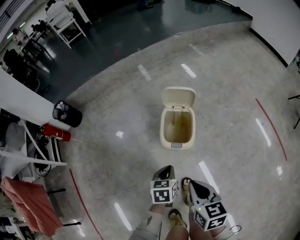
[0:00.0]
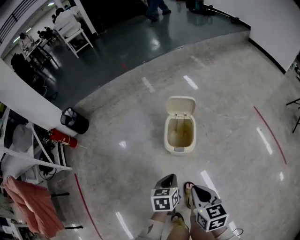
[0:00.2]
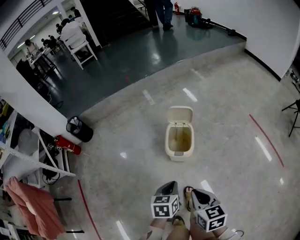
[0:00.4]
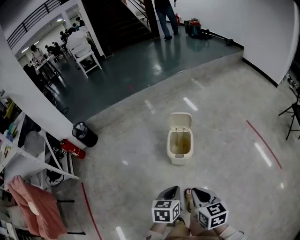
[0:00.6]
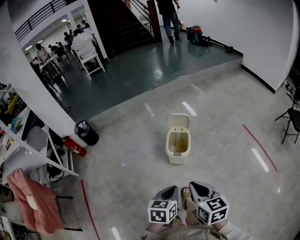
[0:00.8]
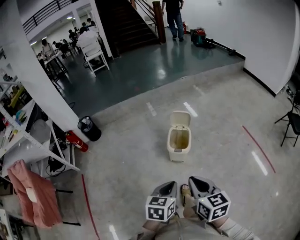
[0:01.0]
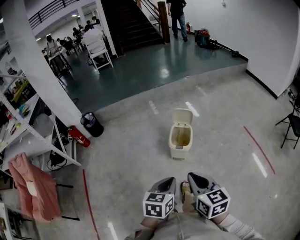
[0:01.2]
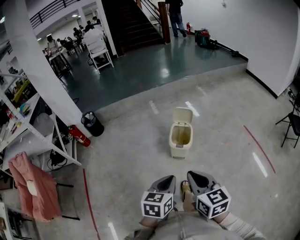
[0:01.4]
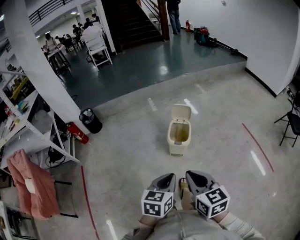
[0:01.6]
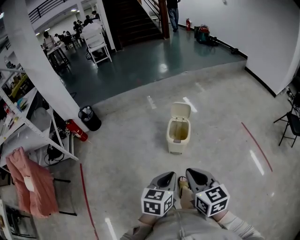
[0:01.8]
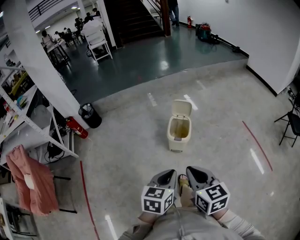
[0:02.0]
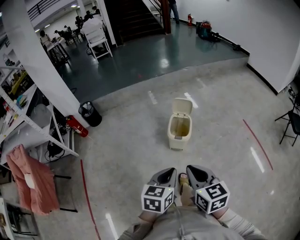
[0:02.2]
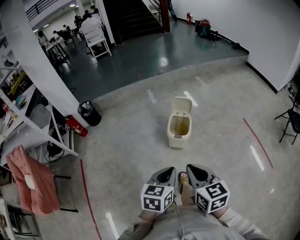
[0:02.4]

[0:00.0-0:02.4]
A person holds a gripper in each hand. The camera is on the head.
0:00.0 to 0:01.2: Both grippers move upward and backward, about 40 cm. The right gripper rotates about 20 degrees.
0:01.2 to 0:02.4: The grippers move only a little.

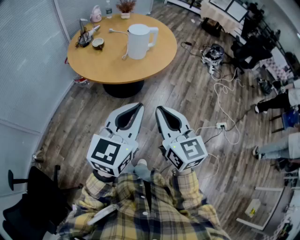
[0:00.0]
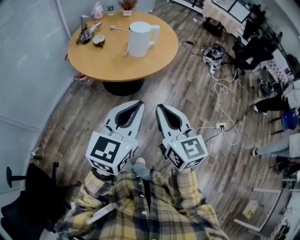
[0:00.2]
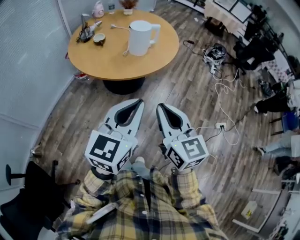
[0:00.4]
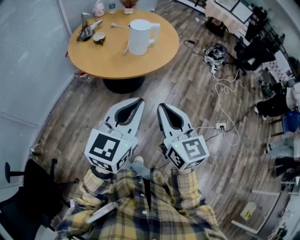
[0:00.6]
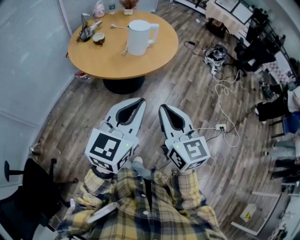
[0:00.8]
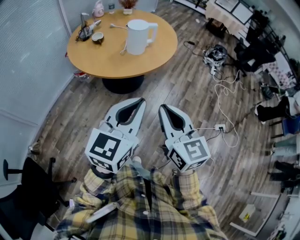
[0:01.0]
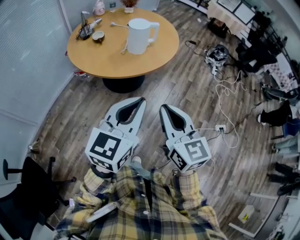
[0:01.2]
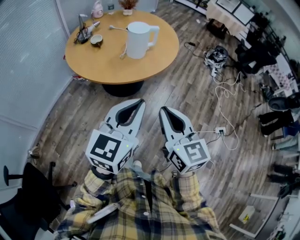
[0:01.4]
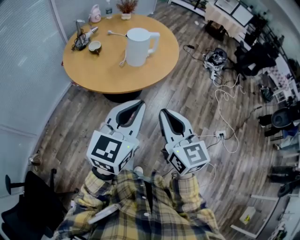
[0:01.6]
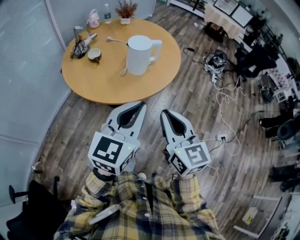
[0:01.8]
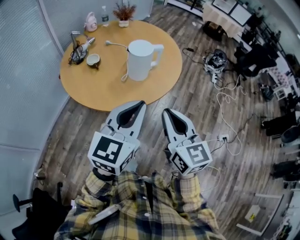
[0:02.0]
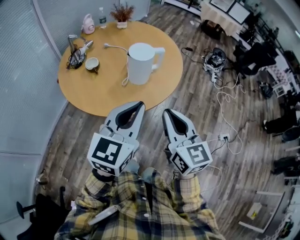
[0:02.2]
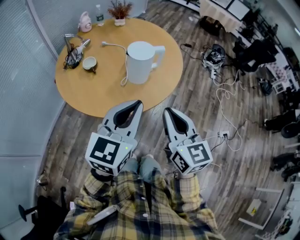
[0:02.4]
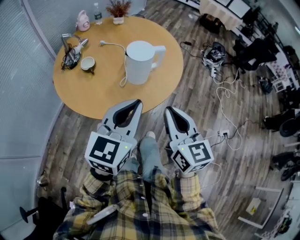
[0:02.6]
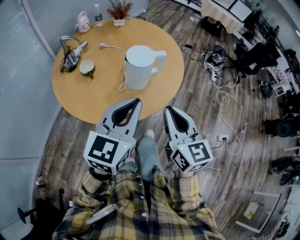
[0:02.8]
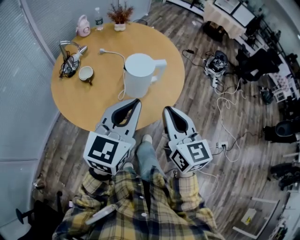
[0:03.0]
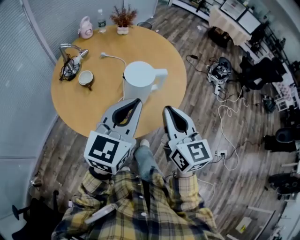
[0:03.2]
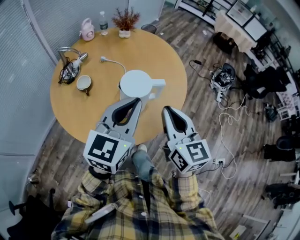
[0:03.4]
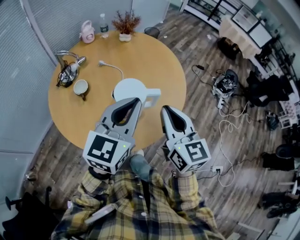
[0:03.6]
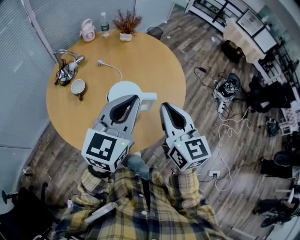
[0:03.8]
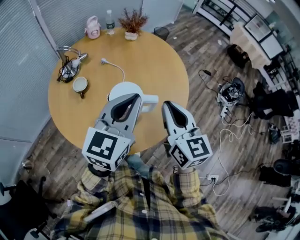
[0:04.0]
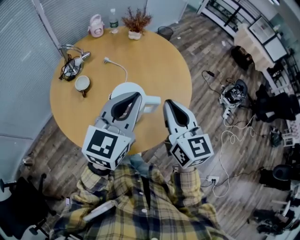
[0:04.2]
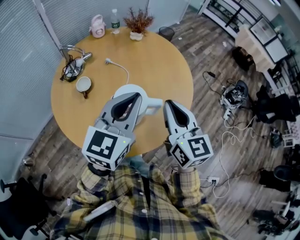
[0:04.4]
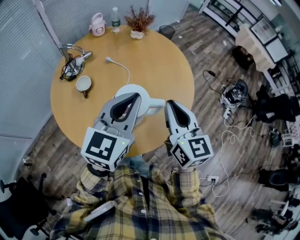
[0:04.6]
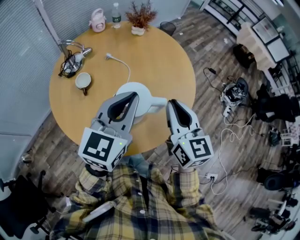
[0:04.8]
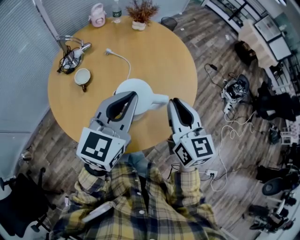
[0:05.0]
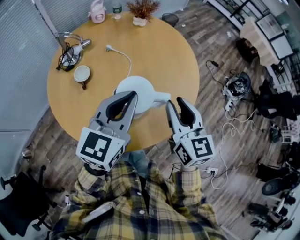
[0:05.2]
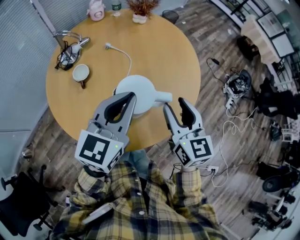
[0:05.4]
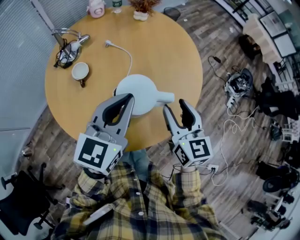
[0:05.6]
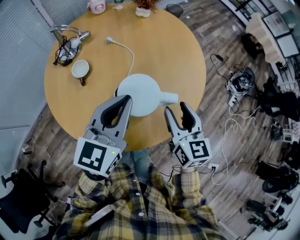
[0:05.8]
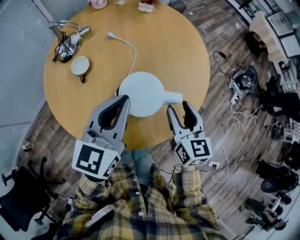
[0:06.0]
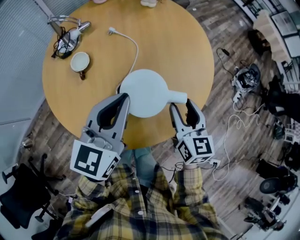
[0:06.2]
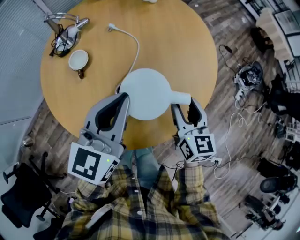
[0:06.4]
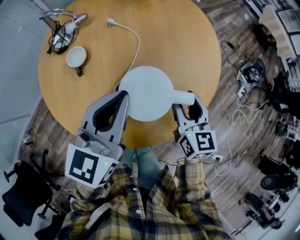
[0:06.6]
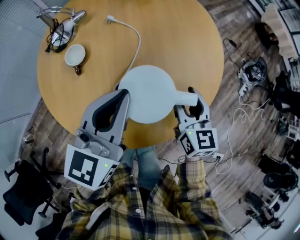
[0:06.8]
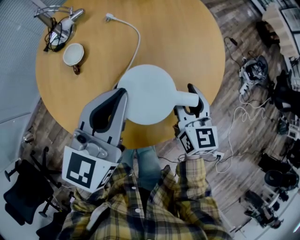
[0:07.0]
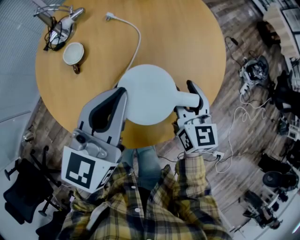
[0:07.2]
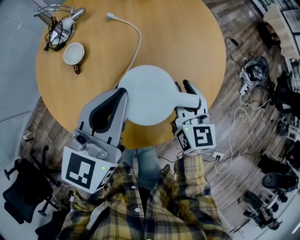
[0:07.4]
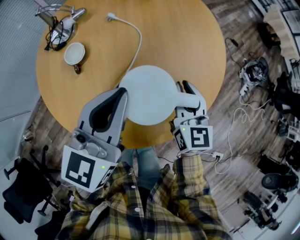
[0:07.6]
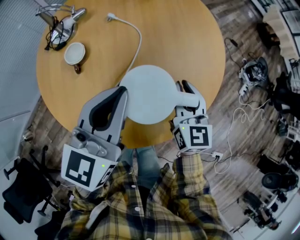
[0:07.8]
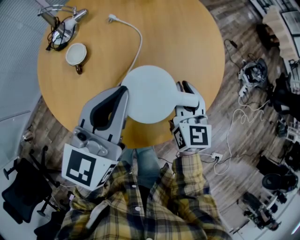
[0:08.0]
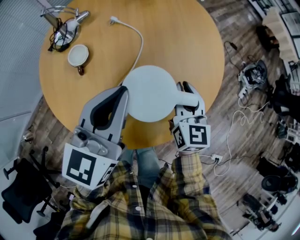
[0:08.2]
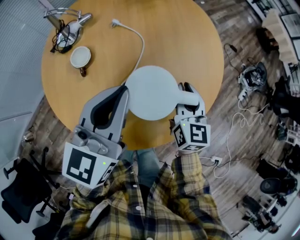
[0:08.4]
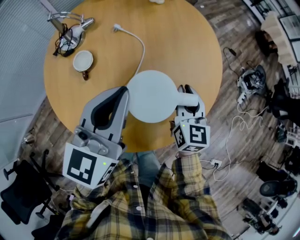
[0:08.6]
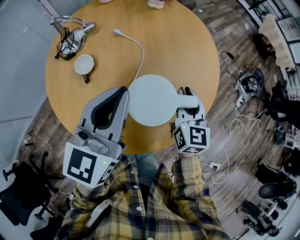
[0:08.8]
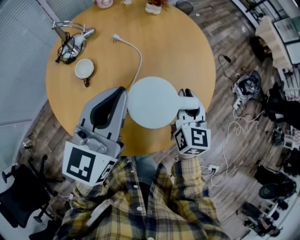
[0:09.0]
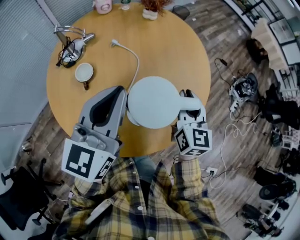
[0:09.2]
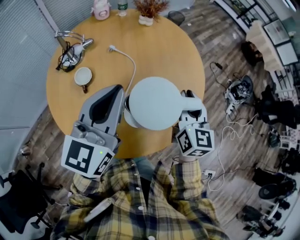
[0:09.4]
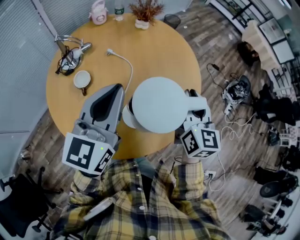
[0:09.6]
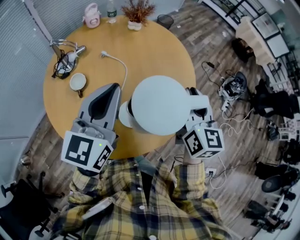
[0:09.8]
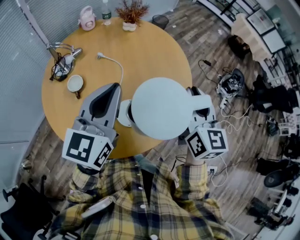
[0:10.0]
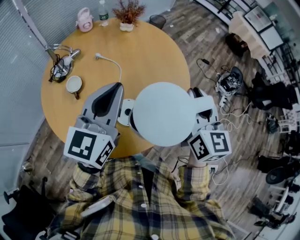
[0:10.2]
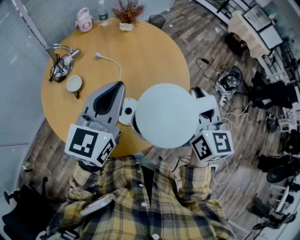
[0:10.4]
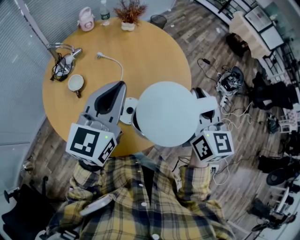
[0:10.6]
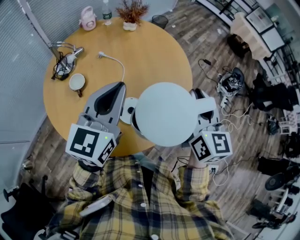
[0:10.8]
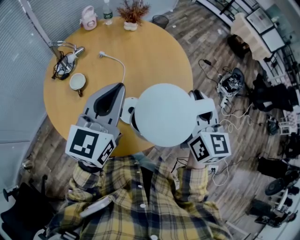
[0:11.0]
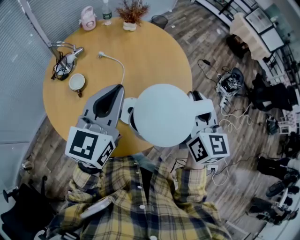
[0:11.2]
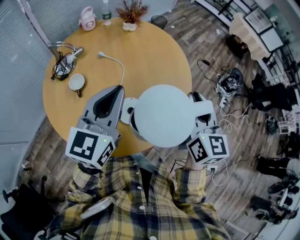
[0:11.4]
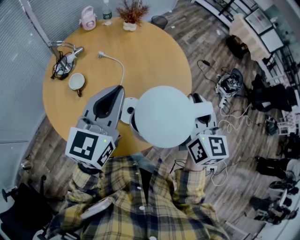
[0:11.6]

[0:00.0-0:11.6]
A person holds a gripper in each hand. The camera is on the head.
0:00.0 to 0:01.4: The right gripper changes place by roughly 5 cm, while the left gripper ends up about 5 cm from where it was.
0:01.4 to 0:02.8: Both grippers move forward, some 25 cm.
0:02.8 to 0:04.4: Both grippers travel together forward, about 25 cm.
0:04.4 to 0:05.8: The right gripper travels downward by approximately 10 cm, and opens. The left gripper heads downward and to the left, covering approximately 10 cm.
0:05.8 to 0:07.2: The right gripper travels downward and forward by approximately 10 cm.
0:07.2 to 0:08.8: The left gripper is displaced upward by about 5 cm; the right gripper closes up.
0:08.8 to 0:10.2: The right gripper is displaced upward and to the right by some 20 cm. Meanwhile the left gripper shifts by roughly 5 cm.
0:10.2 to 0:11.6: The grippers stay close to where they were, moving slightly.

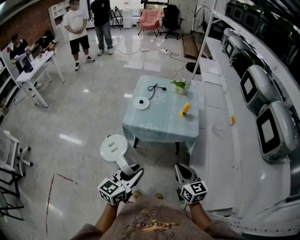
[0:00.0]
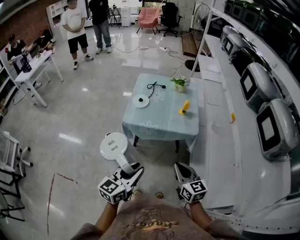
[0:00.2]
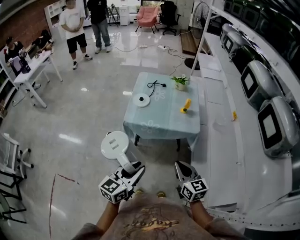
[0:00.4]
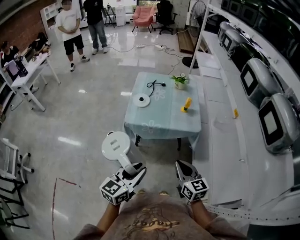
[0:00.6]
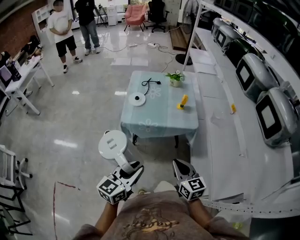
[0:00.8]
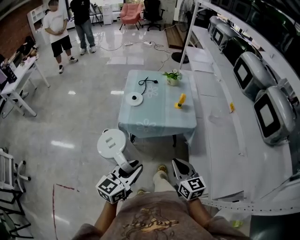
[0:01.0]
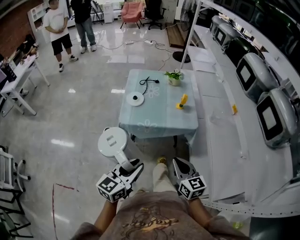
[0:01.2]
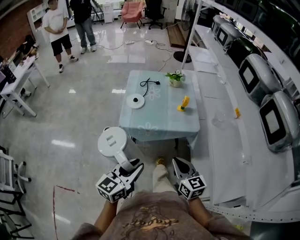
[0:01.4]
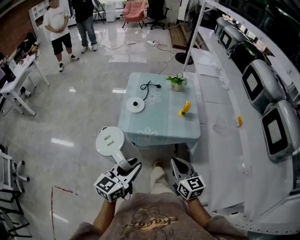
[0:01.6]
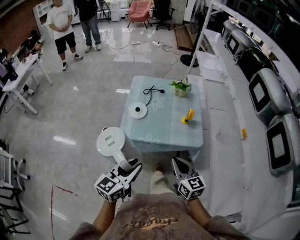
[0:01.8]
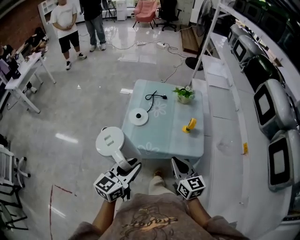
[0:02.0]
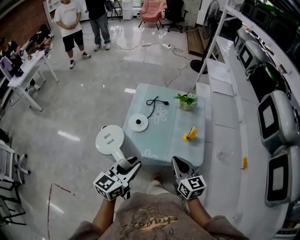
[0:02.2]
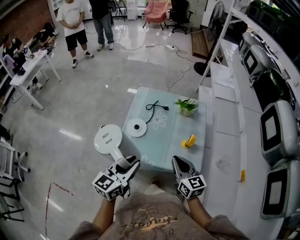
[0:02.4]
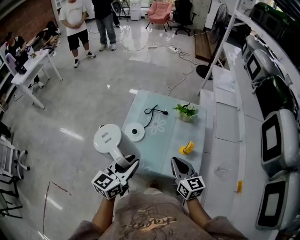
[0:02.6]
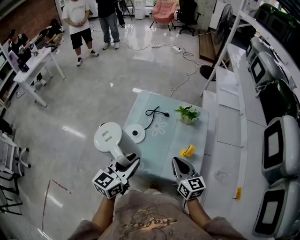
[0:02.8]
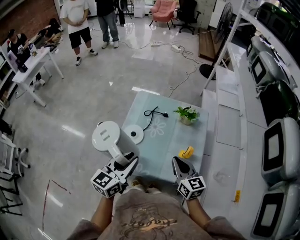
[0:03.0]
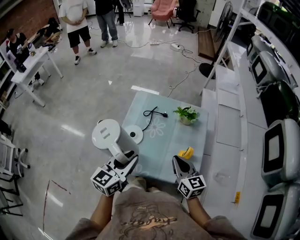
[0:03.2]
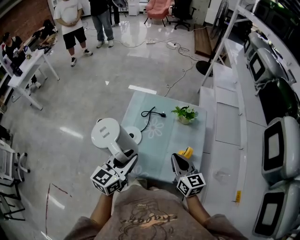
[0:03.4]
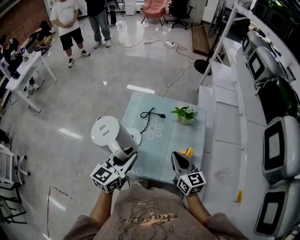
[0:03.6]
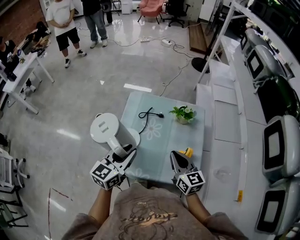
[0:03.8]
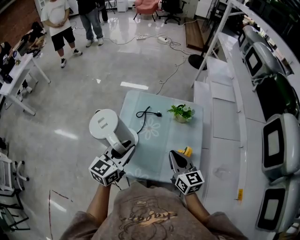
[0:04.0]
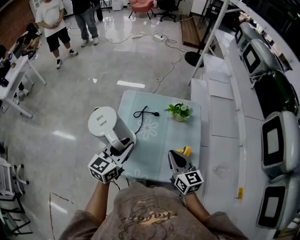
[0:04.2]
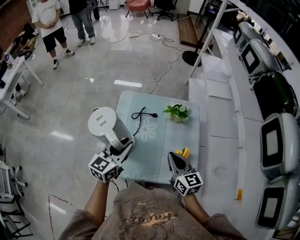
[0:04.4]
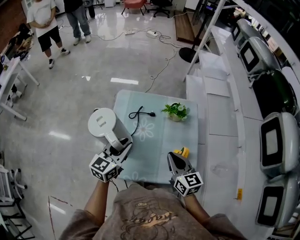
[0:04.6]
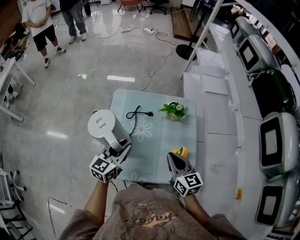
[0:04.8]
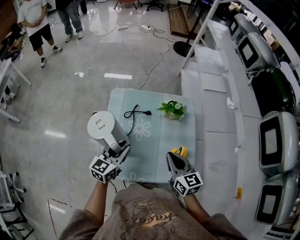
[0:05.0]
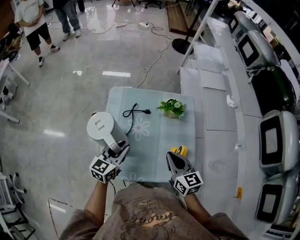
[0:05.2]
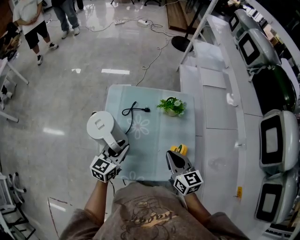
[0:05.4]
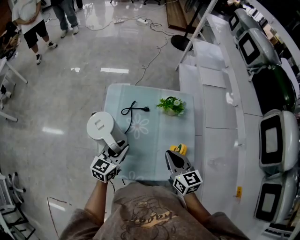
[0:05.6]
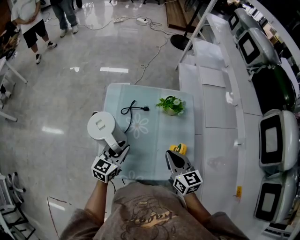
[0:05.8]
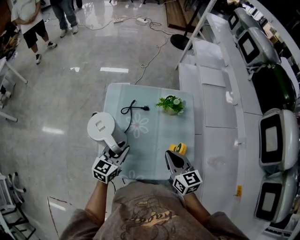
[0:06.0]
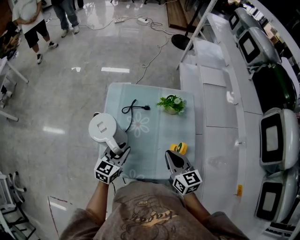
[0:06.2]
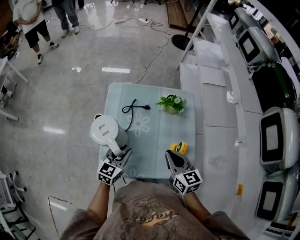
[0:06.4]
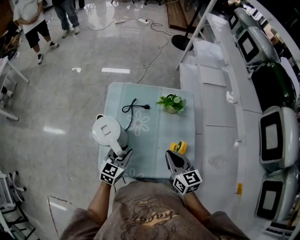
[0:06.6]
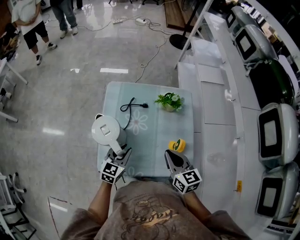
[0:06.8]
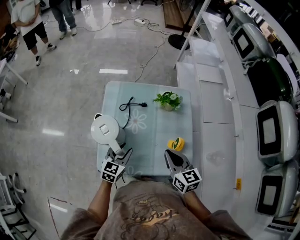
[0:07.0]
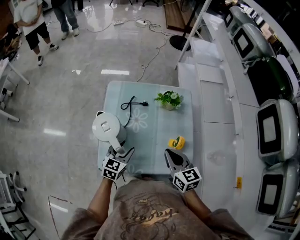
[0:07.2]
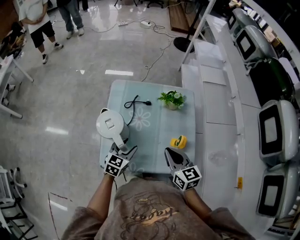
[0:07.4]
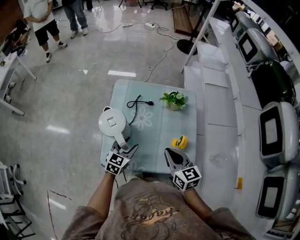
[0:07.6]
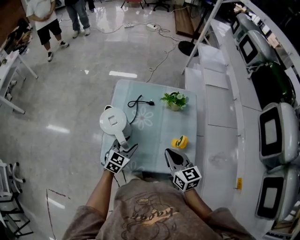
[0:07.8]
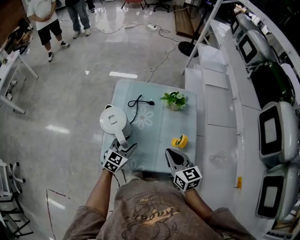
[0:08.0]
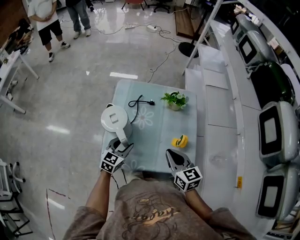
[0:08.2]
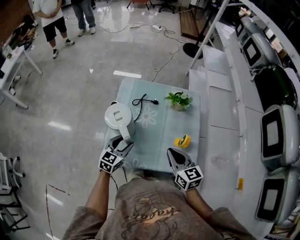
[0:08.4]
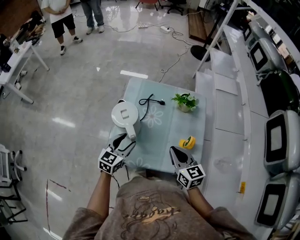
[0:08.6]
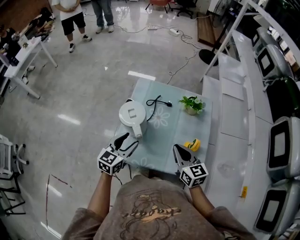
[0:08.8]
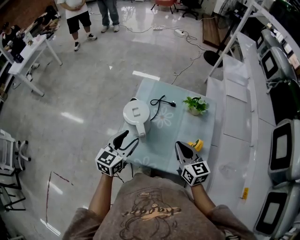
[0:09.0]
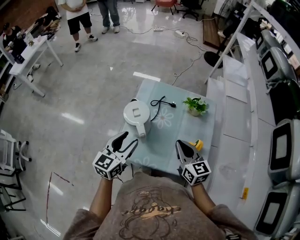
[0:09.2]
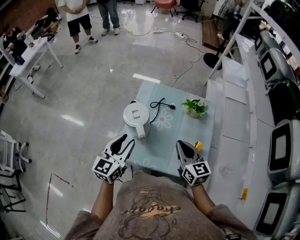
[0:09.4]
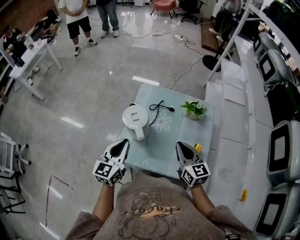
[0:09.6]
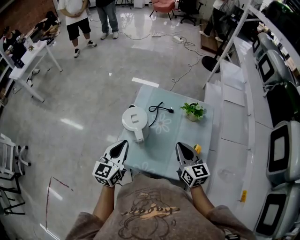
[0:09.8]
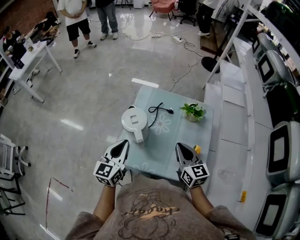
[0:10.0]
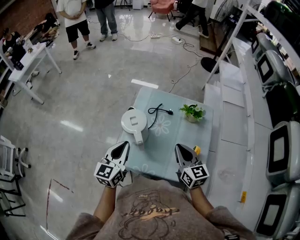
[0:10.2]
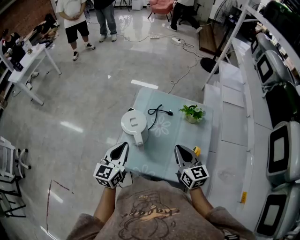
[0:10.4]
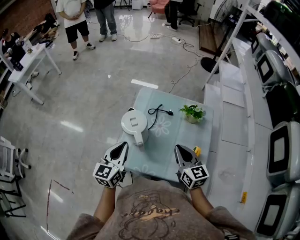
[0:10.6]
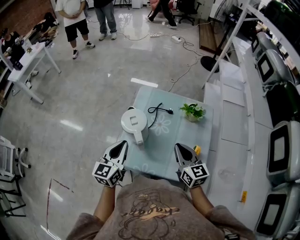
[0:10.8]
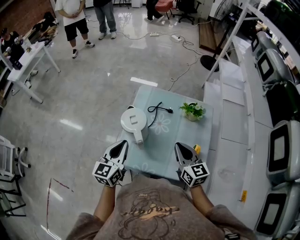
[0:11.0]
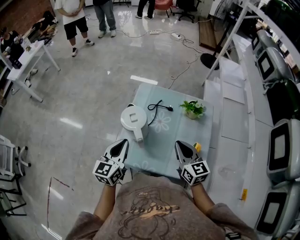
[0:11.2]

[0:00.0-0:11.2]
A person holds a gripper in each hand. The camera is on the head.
0:00.0 to 0:01.6: Both grippers travel together forward and to the left, some 15 cm.
0:01.6 to 0:03.2: Both grippers move forward, about 35 cm.
0:03.2 to 0:04.8: The left gripper is displaced forward and downward by roughly 20 cm. The right gripper goes approximately 5 cm forward.
0:04.8 to 0:06.4: The left gripper shifts approximately 10 cm downward.
0:06.4 to 0:08.0: The left gripper opens; the right gripper heads backward, covering some 5 cm.
0:08.0 to 0:09.6: The left gripper goes about 20 cm upward and to the left, swivels roughly 30 degrees, and closes up. The right gripper ends up some 5 cm from where it was.
0:09.6 to 0:11.2: The grippers make only small movements.
